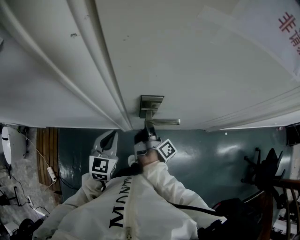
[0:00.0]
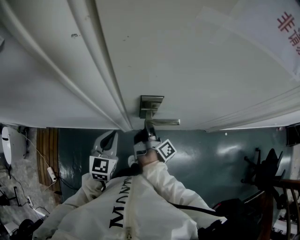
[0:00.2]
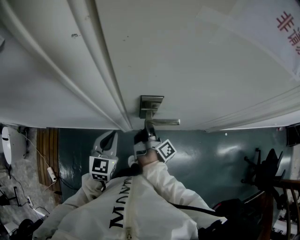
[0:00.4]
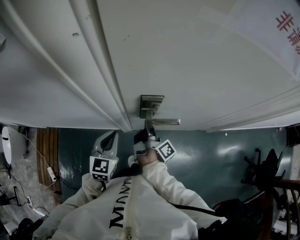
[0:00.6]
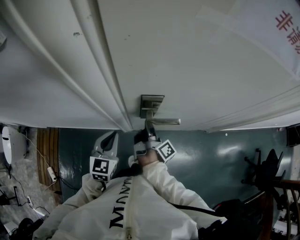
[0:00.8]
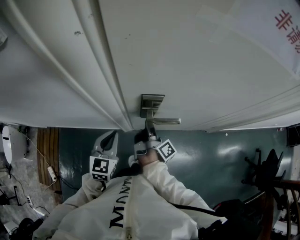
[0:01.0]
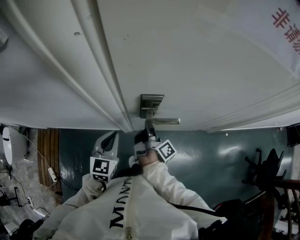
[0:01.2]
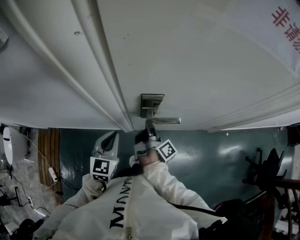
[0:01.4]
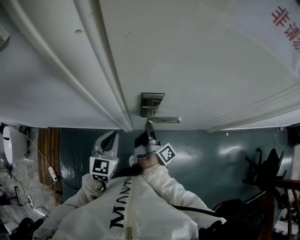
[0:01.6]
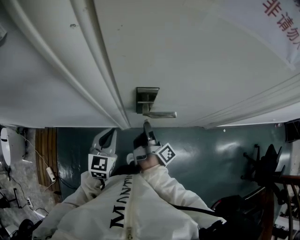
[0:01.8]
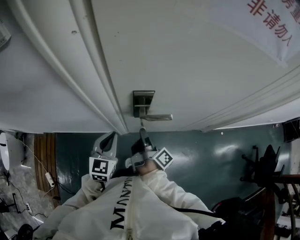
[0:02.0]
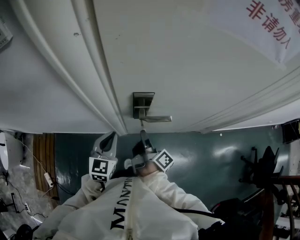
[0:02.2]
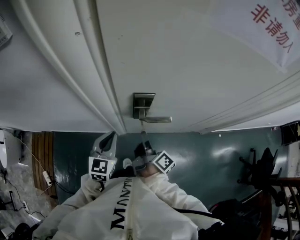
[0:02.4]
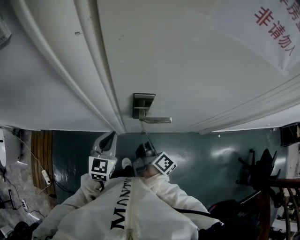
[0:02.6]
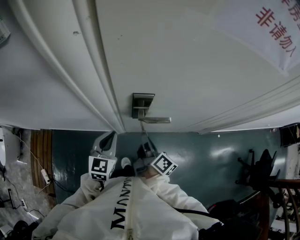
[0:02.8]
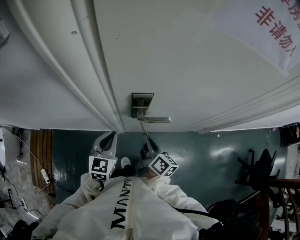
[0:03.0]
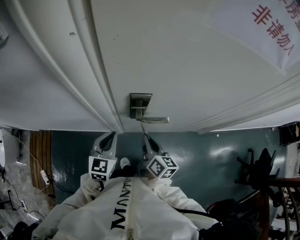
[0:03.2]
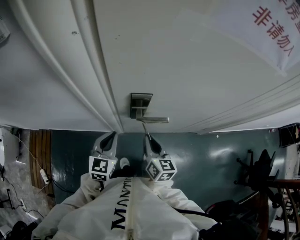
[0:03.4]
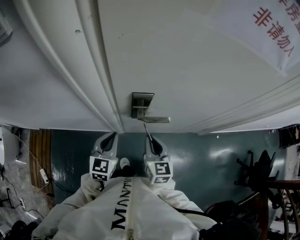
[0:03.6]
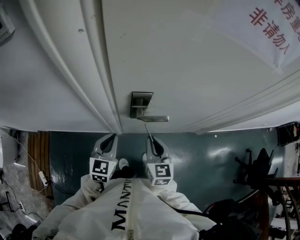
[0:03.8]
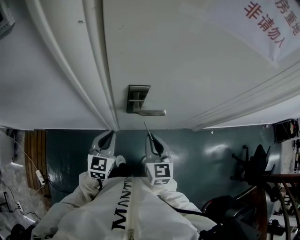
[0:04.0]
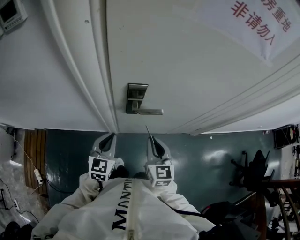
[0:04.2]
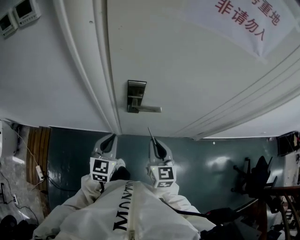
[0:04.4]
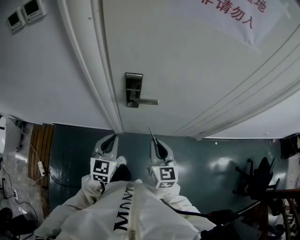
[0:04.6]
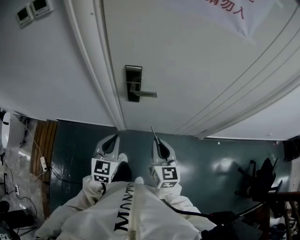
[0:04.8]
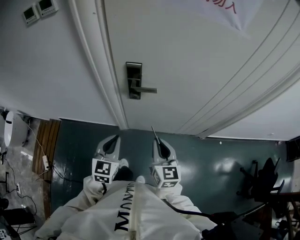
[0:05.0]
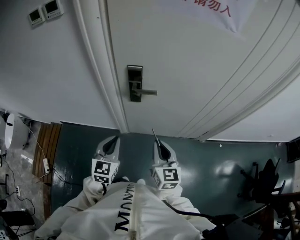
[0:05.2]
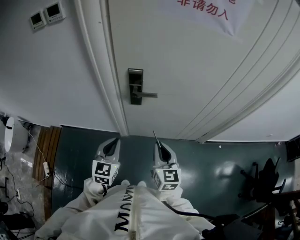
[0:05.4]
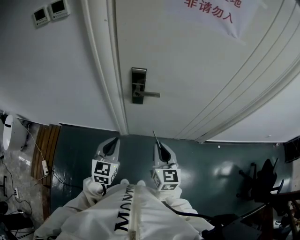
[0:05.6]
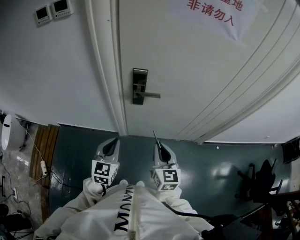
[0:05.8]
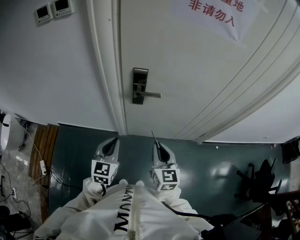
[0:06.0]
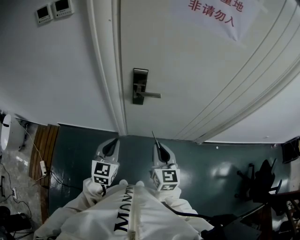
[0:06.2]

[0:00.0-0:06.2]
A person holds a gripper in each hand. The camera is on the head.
0.0 to 1.6 s: There are only small adjustments of the grippers.
1.6 to 3.2 s: The right gripper shifts by some 5 cm, and twists about 60 degrees counterclockwise, seen from behind.
3.2 to 4.6 s: The right gripper shifts approximately 15 cm backward, to the right and upward, and rotates approximately 40 degrees; the left gripper is displaced backward by approximately 10 cm.
4.6 to 6.2 s: The grippers both shift backward by some 10 cm.

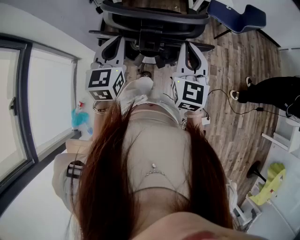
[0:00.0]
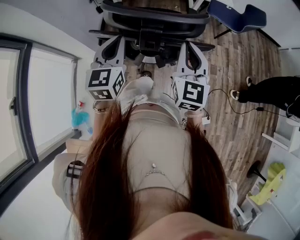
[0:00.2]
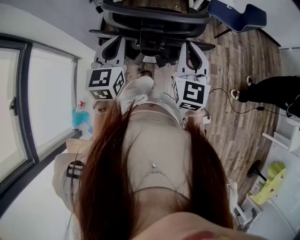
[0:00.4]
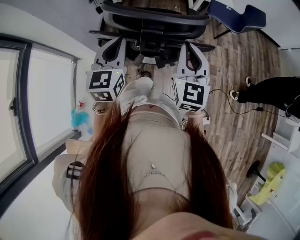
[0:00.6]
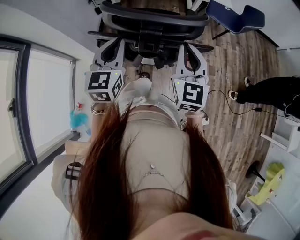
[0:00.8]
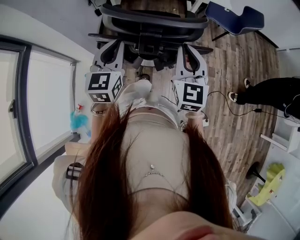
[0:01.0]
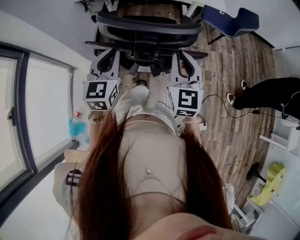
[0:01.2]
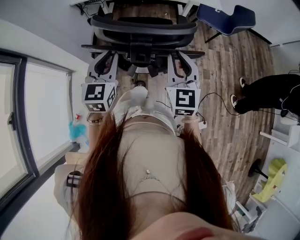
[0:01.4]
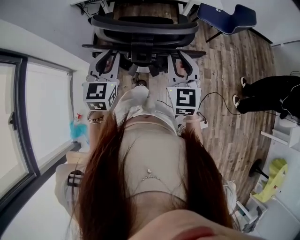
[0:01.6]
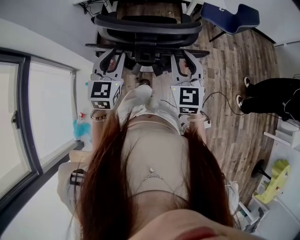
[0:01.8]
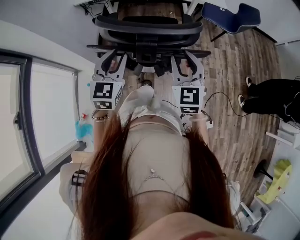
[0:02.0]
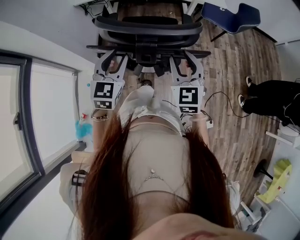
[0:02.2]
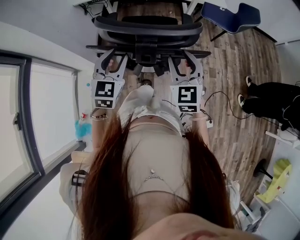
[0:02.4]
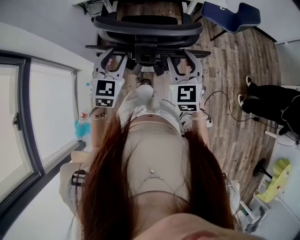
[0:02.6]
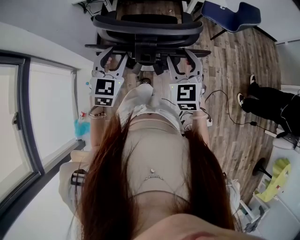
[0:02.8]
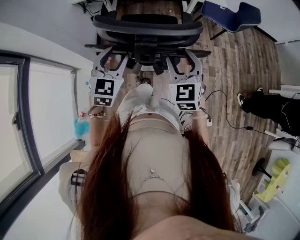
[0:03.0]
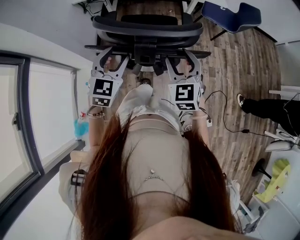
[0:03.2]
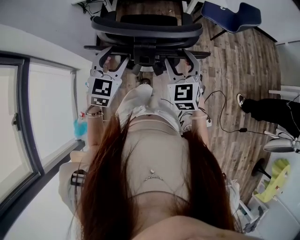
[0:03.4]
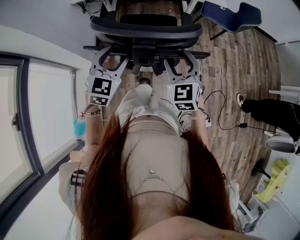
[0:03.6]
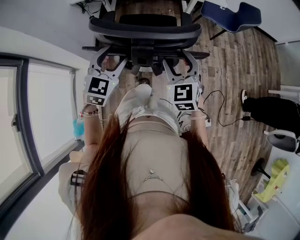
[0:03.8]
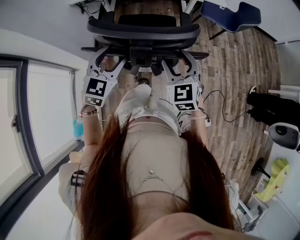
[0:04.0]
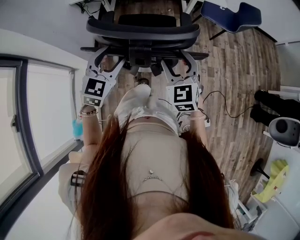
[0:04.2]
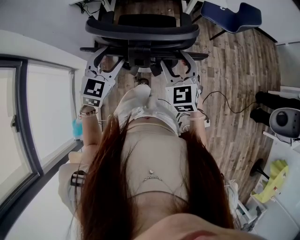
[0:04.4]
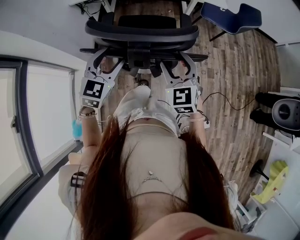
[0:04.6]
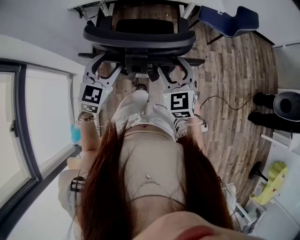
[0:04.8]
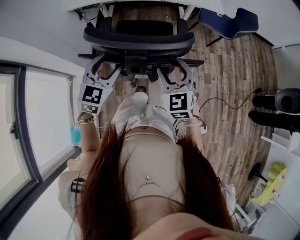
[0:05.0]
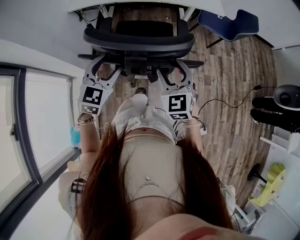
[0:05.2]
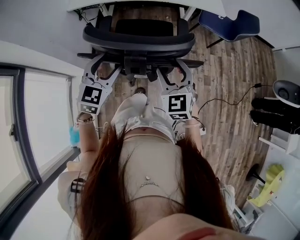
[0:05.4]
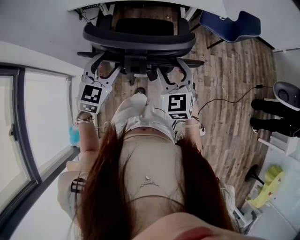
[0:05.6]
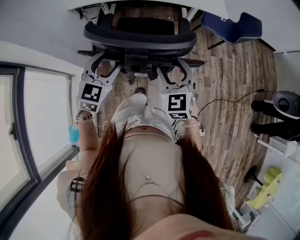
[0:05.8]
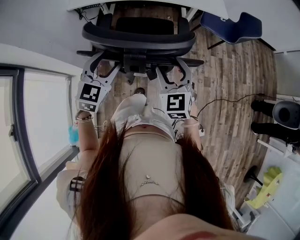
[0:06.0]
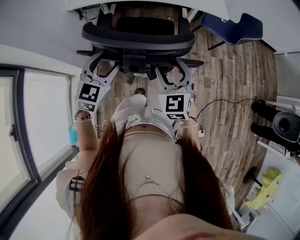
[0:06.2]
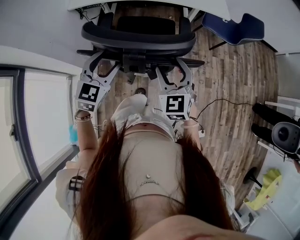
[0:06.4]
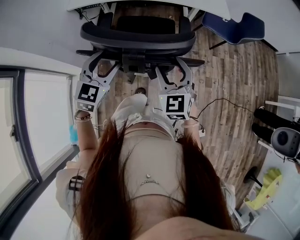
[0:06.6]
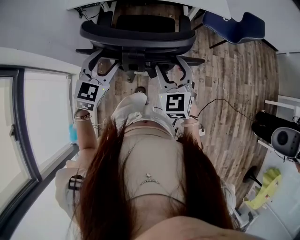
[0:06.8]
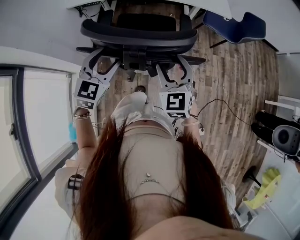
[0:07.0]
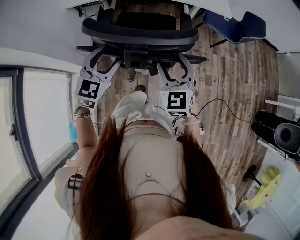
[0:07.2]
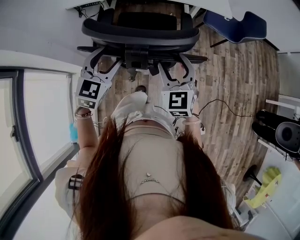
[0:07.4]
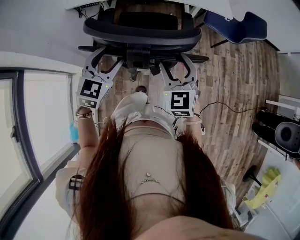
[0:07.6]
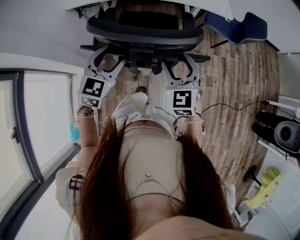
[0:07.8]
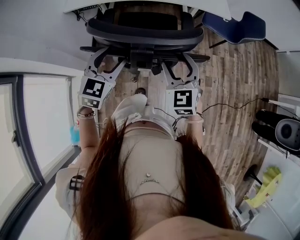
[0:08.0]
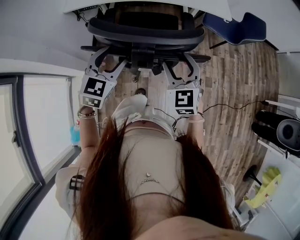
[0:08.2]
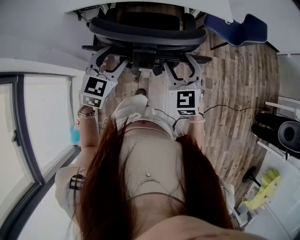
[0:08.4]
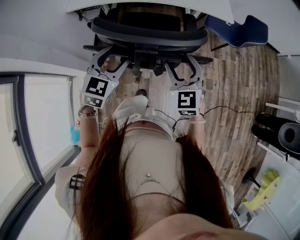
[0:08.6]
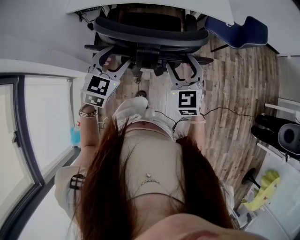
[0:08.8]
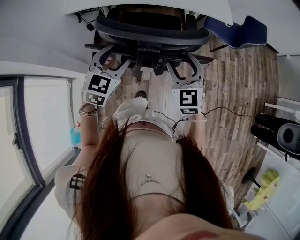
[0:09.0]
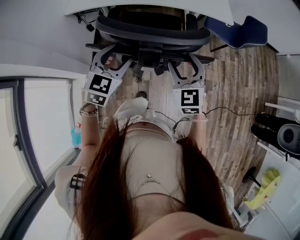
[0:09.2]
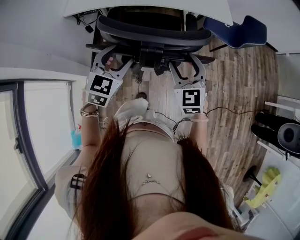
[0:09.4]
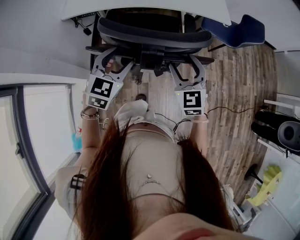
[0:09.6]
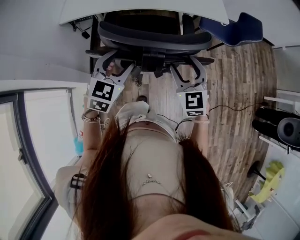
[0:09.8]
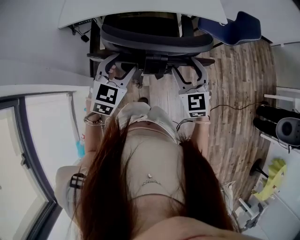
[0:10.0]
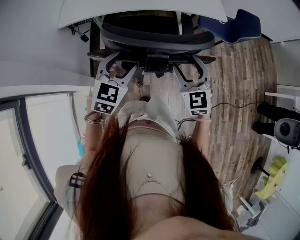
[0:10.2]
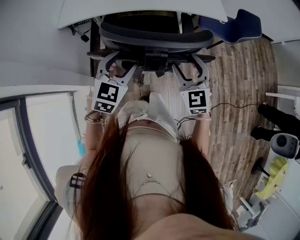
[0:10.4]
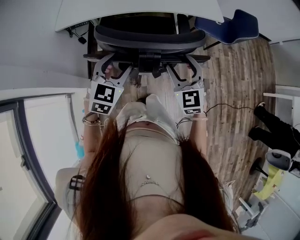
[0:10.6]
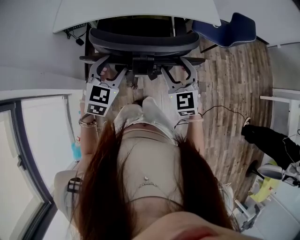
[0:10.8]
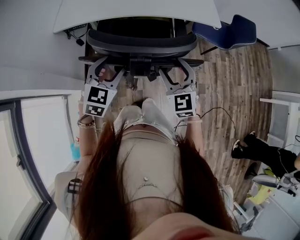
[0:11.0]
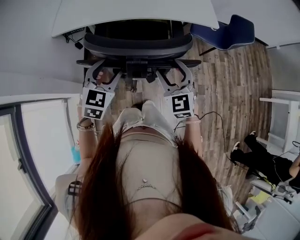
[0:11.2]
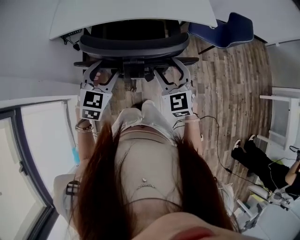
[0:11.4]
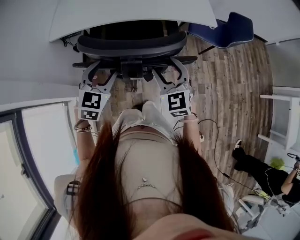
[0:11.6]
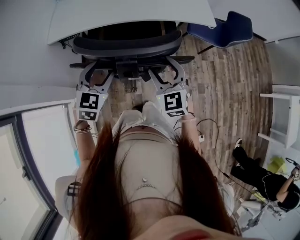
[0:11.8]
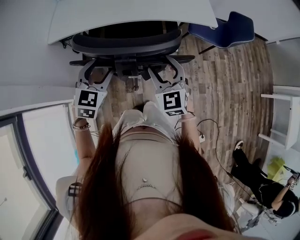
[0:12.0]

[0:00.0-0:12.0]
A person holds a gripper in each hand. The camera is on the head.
0.0 to 1.6 s: The grippers stay close to where they were, moving slightly.
1.6 to 3.0 s: The left gripper opens up; the right gripper opens.
3.0 to 4.4 s: The grippers stay close to where they were, moving slightly.
4.4 to 6.0 s: Both grippers move forward, about 5 cm.
6.0 to 7.6 s: The two grippers go about 5 cm forward.
7.6 to 9.0 s: The grippers stay close to where they were, moving slightly.
9.0 to 10.4 s: The grippers make only small movements.
10.4 to 12.0 s: The two grippers go about 5 cm forward.

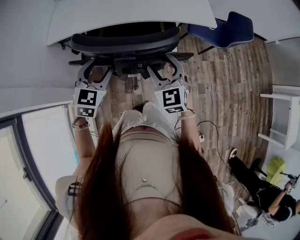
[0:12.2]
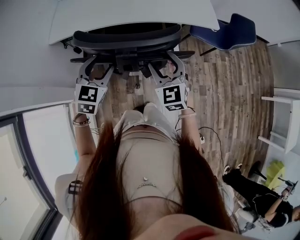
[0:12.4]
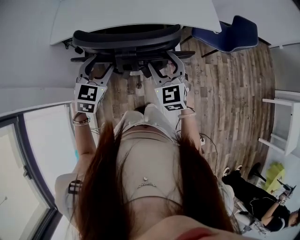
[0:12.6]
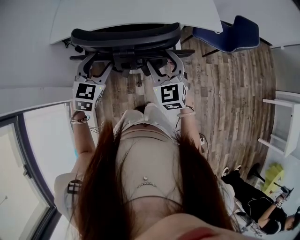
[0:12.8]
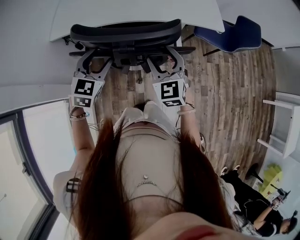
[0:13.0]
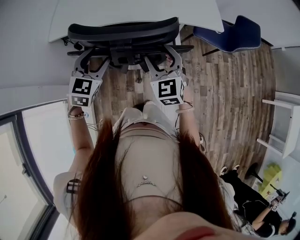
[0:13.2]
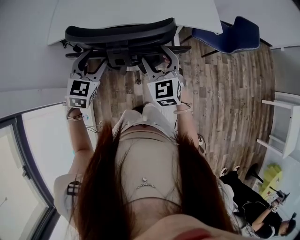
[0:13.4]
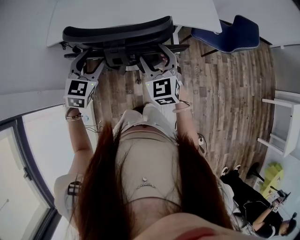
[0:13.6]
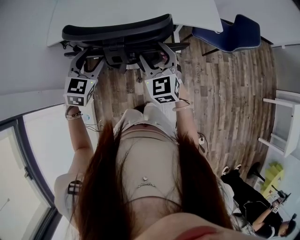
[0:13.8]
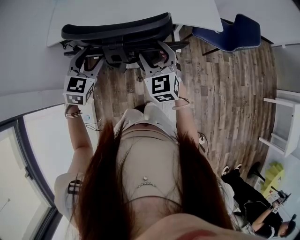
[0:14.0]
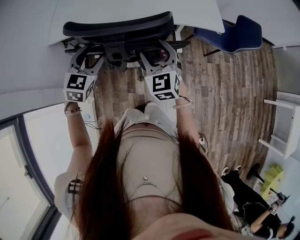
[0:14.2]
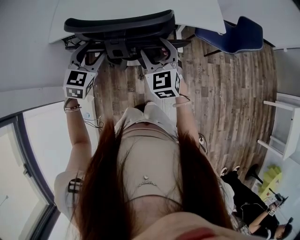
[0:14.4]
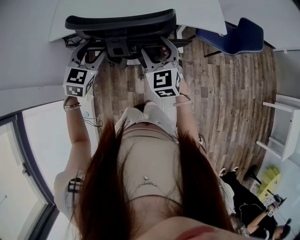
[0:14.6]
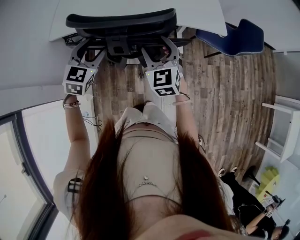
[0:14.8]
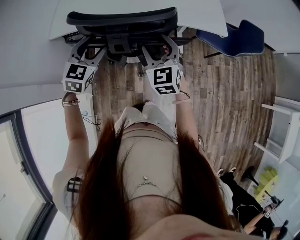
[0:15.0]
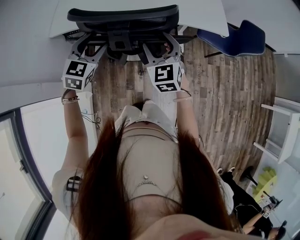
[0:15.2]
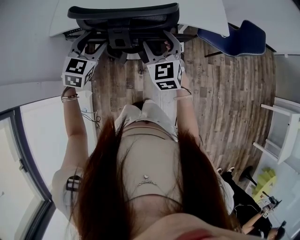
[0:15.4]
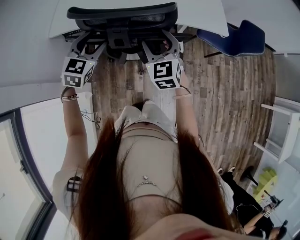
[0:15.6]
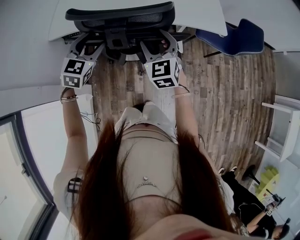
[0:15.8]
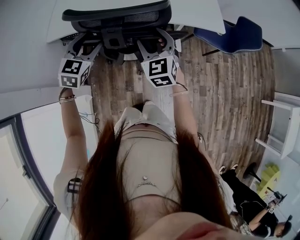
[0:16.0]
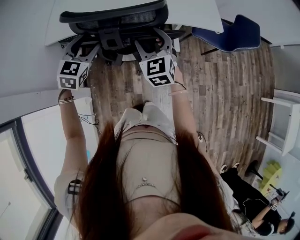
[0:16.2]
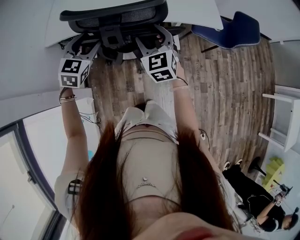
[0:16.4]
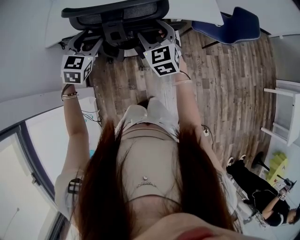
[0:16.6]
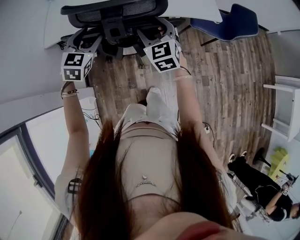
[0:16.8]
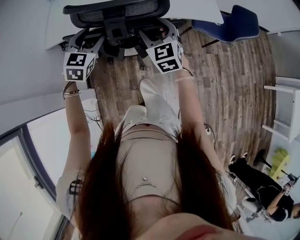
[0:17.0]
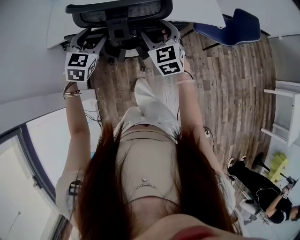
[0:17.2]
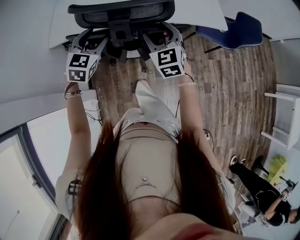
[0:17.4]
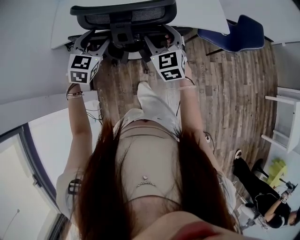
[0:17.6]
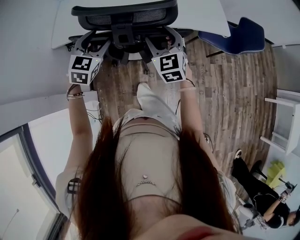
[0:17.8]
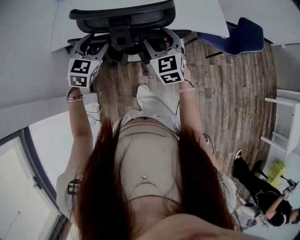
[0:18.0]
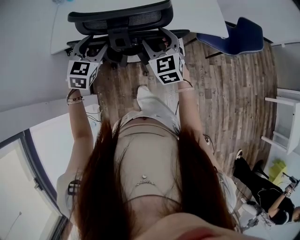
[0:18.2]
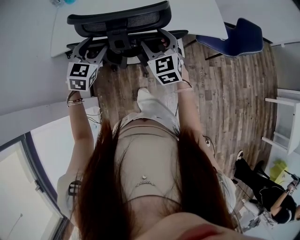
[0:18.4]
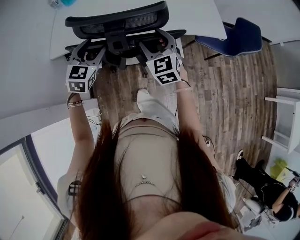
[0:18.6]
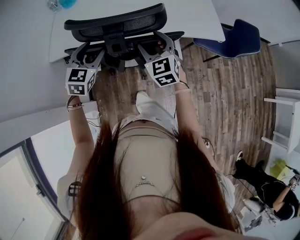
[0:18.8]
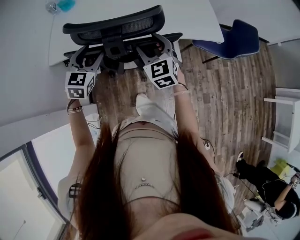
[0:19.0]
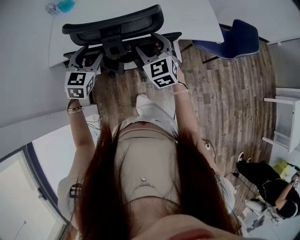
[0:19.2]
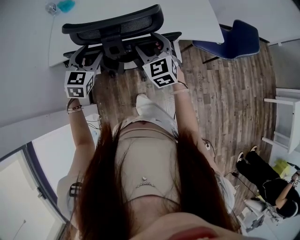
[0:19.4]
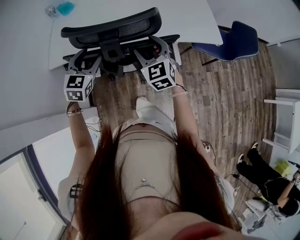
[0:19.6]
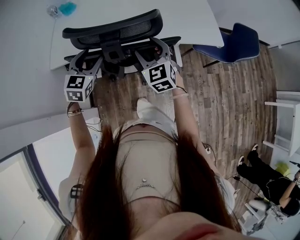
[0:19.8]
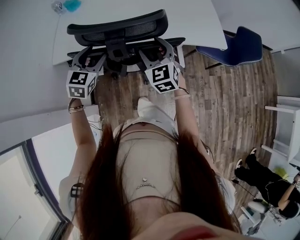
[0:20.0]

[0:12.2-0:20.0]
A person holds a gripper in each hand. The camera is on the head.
12.2 to 13.8 s: The grippers both shift forward by about 10 cm.
13.8 to 15.4 s: The left gripper shifts by roughly 5 cm. Meanwhile the right gripper shifts by about 5 cm.
15.4 to 16.8 s: The grippers move only a little.
16.8 to 18.4 s: The right gripper shifts by roughly 5 cm, while the left gripper moves some 5 cm.
18.4 to 20.0 s: The grippers make only small movements.
